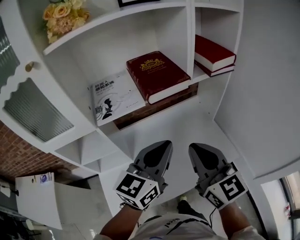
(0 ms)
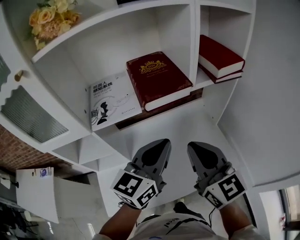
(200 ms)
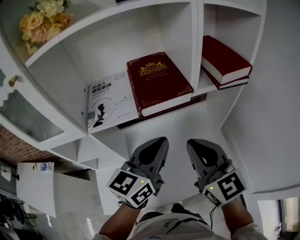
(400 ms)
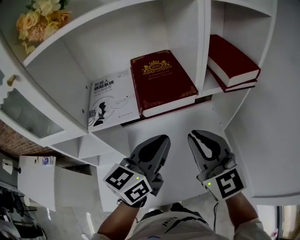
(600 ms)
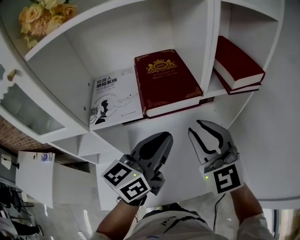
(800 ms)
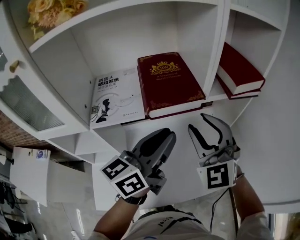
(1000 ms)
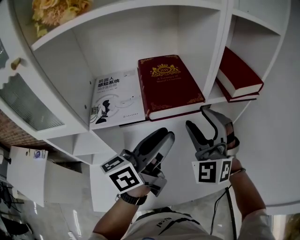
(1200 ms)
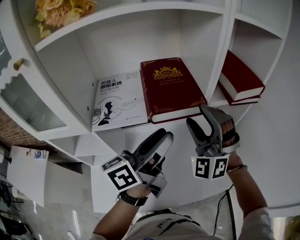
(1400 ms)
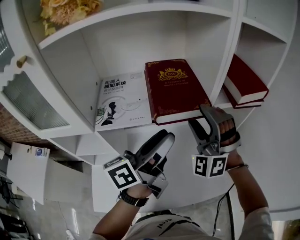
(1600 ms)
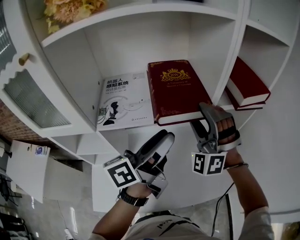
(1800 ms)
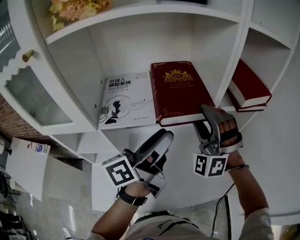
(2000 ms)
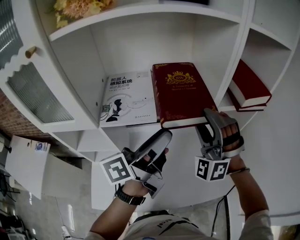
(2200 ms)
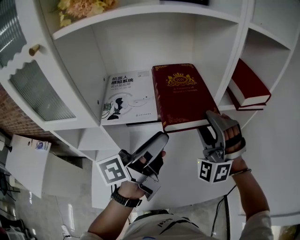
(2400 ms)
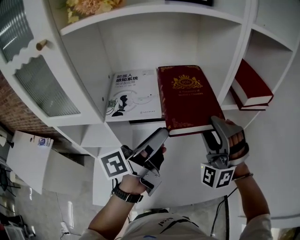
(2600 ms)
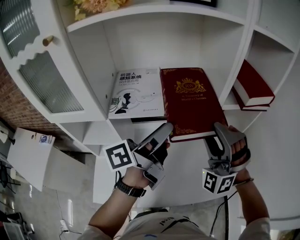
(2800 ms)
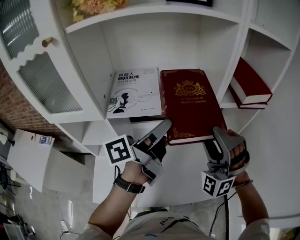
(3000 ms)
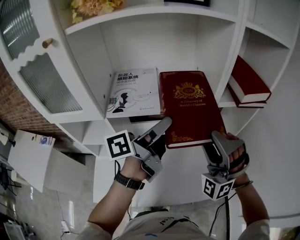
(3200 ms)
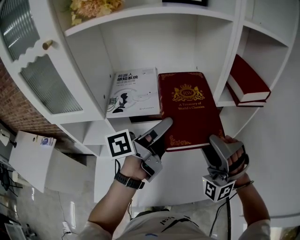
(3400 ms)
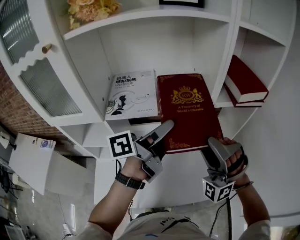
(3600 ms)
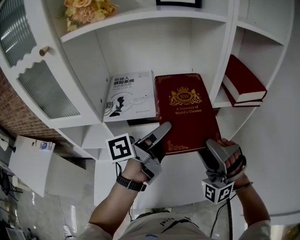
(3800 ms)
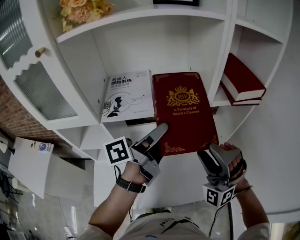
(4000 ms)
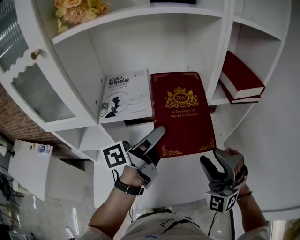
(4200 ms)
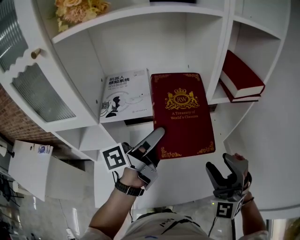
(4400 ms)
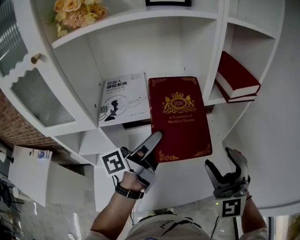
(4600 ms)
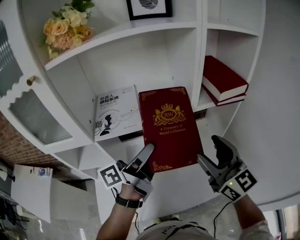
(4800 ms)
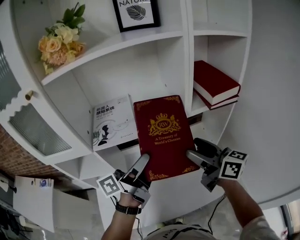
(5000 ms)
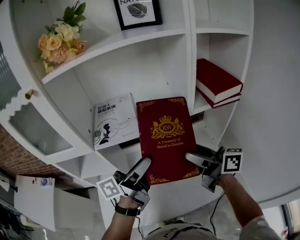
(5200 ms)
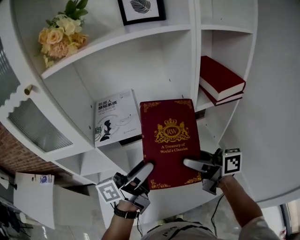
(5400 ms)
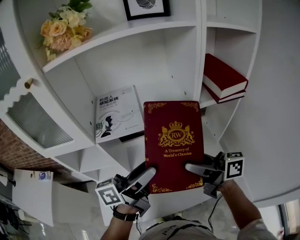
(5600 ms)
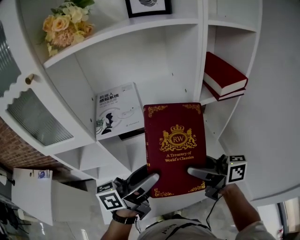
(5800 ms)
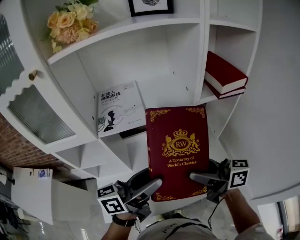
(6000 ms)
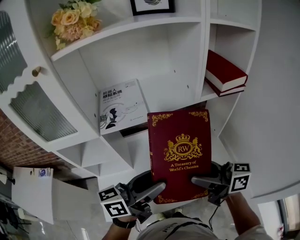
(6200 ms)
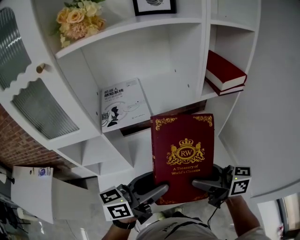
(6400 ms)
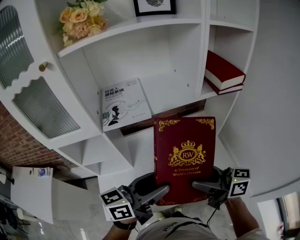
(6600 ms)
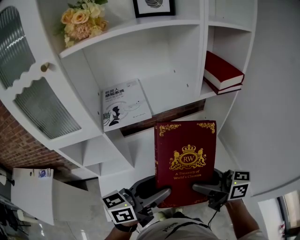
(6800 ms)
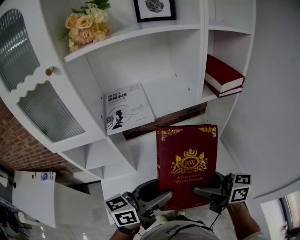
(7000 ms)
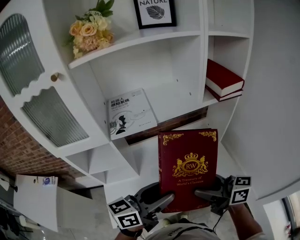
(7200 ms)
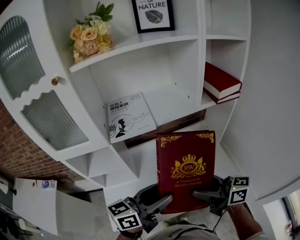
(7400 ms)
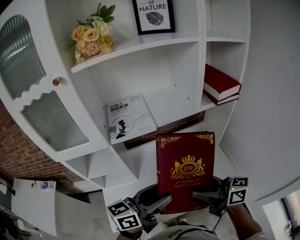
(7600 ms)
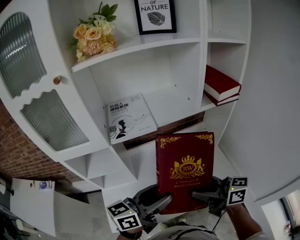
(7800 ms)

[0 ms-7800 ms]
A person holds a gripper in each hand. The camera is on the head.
0 ms to 1600 ms: The left gripper travels forward by some 10 cm, turns by approximately 40 degrees, and opens up; the right gripper moves forward, approximately 20 cm, twists roughly 80 degrees counterclockwise, seen from behind, and opens.
1600 ms to 3200 ms: The right gripper is displaced backward by about 10 cm.
3200 ms to 4600 ms: The right gripper shifts approximately 10 cm backward and to the right, and twists approximately 40 degrees clockwise, seen from behind.
4600 ms to 6200 ms: The right gripper moves to the left and downward, about 10 cm, goes forward and returns, roughly 10 cm each way, and rolls clockwise, seen from behind, by about 80 degrees. The left gripper goes about 15 cm backward, and changes its angle by about 30 degrees.
6200 ms to 7800 ms: The right gripper changes place by about 5 cm.

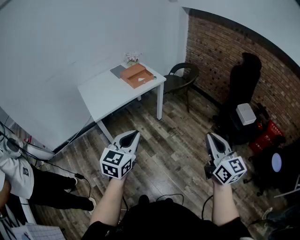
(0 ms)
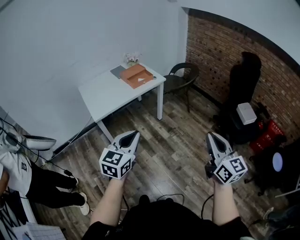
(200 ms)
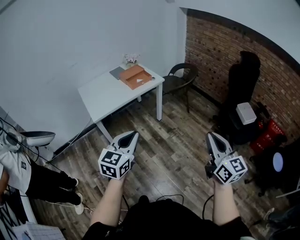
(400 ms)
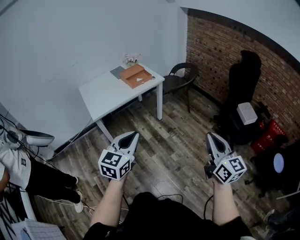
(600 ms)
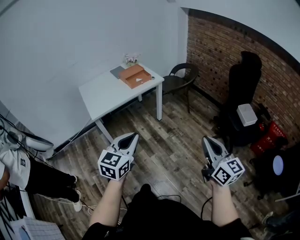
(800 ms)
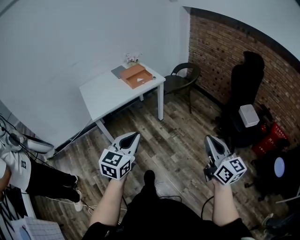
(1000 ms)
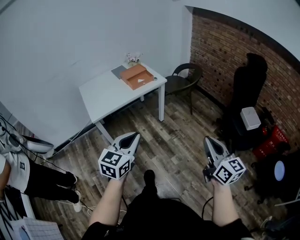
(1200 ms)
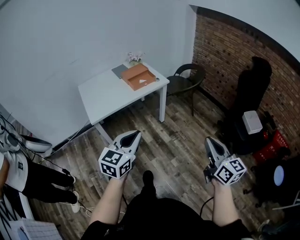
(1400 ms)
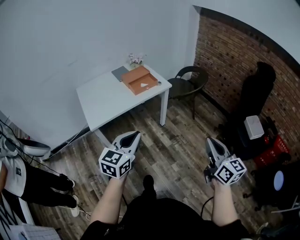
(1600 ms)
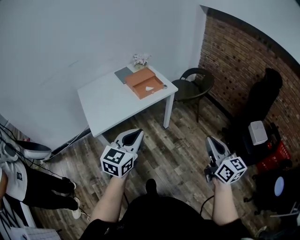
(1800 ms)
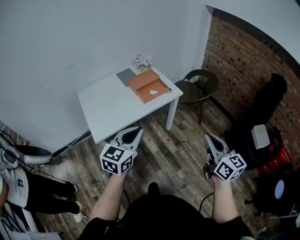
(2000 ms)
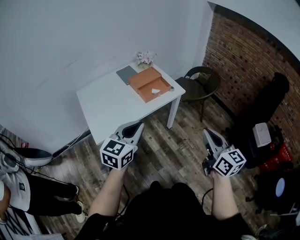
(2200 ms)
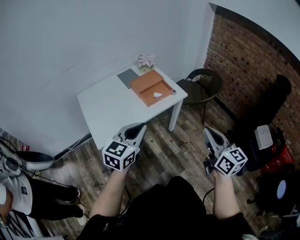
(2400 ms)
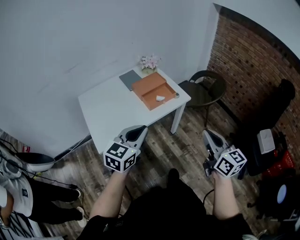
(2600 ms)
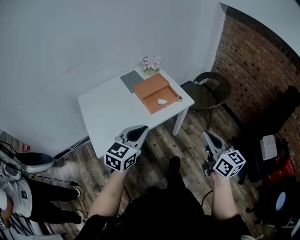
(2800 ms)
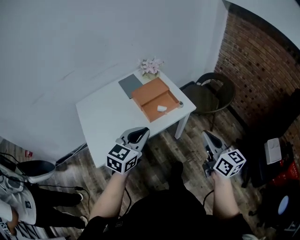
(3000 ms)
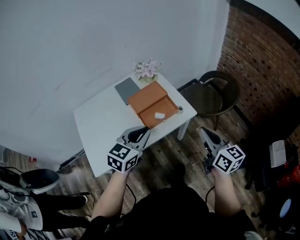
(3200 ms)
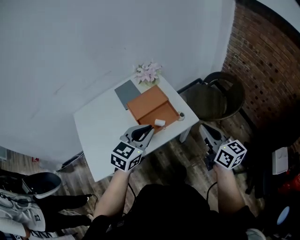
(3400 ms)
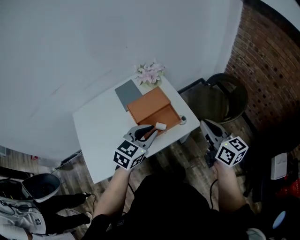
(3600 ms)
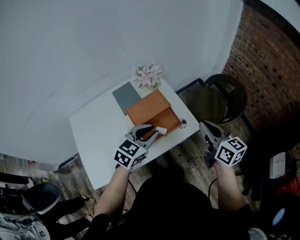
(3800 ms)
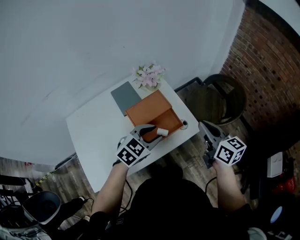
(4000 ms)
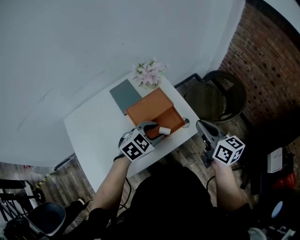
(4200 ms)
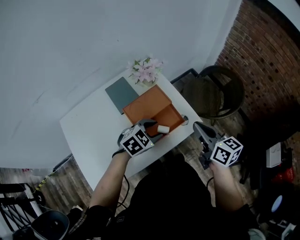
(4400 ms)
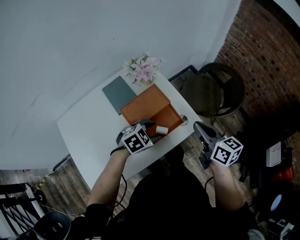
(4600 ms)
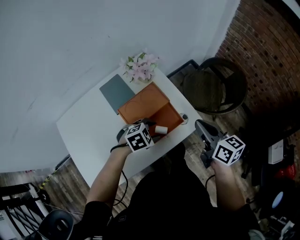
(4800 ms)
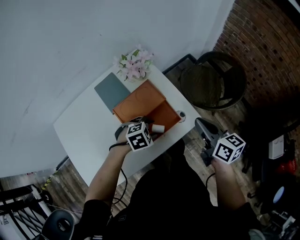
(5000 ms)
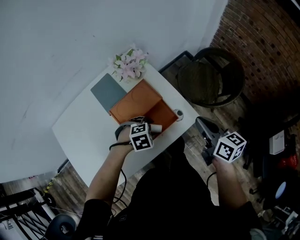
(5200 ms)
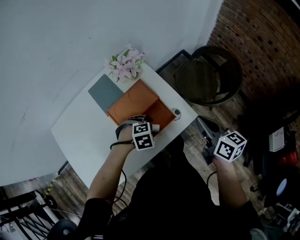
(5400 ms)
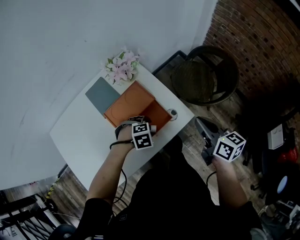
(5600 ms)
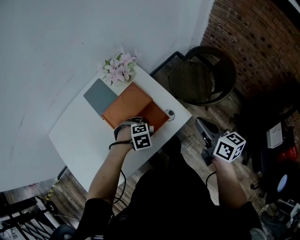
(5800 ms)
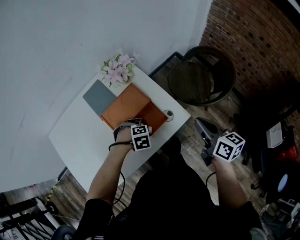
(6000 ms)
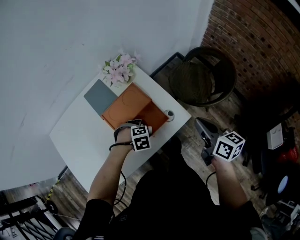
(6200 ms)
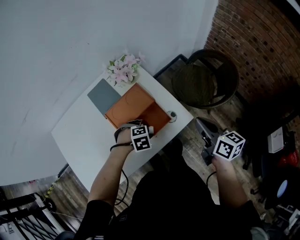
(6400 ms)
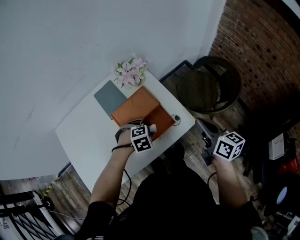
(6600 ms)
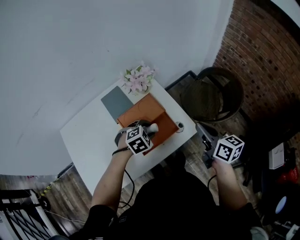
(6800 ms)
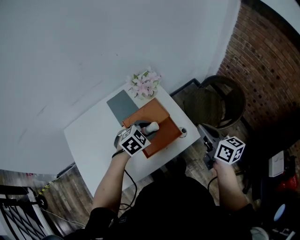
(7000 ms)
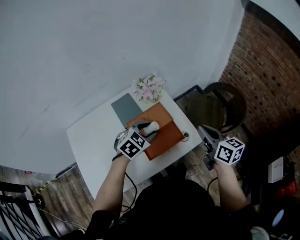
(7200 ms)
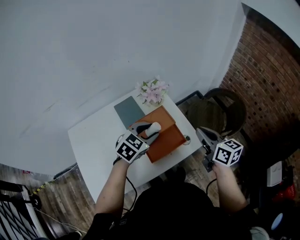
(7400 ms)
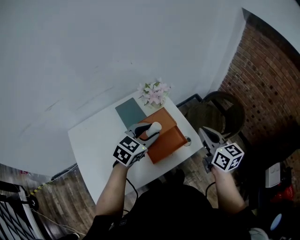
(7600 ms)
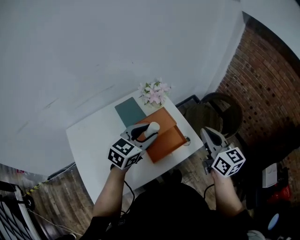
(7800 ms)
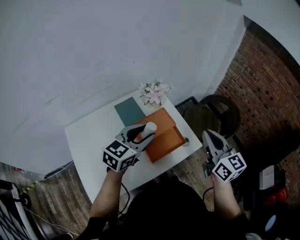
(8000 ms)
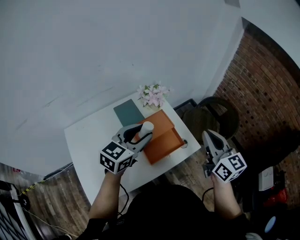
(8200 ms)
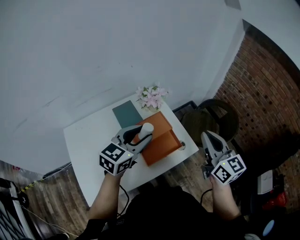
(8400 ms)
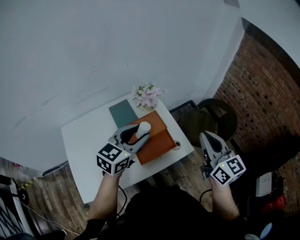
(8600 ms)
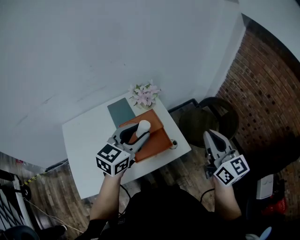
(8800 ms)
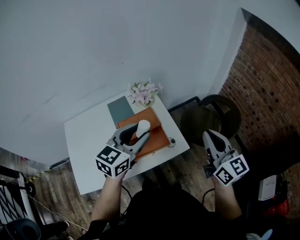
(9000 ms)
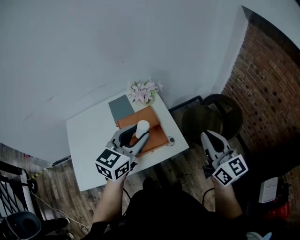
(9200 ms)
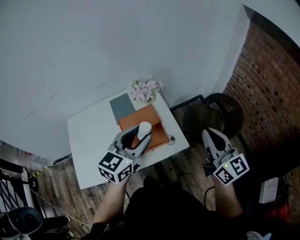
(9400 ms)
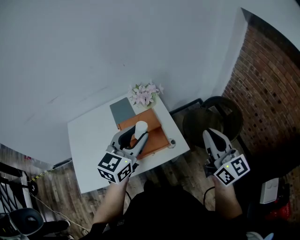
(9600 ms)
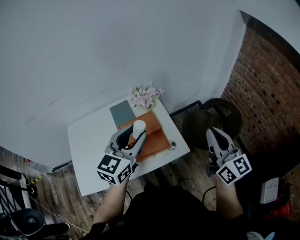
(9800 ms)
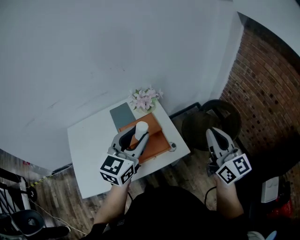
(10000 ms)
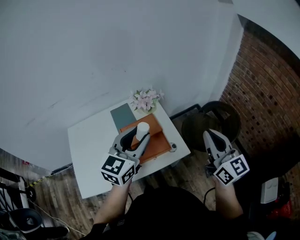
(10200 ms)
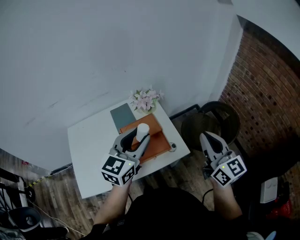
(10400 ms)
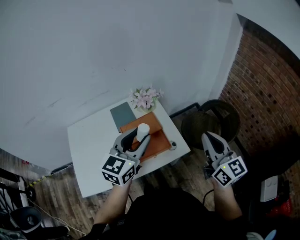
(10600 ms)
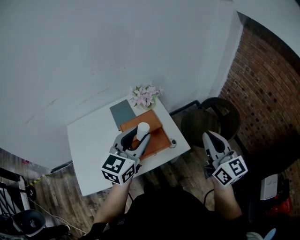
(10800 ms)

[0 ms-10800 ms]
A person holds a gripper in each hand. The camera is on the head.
0 ms to 1600 ms: Both grippers move forward, some 15 cm.
1600 ms to 3000 ms: Both grippers move forward, approximately 35 cm.
3000 ms to 4600 ms: The left gripper is displaced forward and downward by roughly 35 cm, points its fingers some 30 degrees further downward, and opens up, while the right gripper shifts roughly 30 cm forward.
4600 ms to 6200 ms: The right gripper changes place by some 10 cm, while the left gripper goes some 10 cm downward, and changes its angle by approximately 40 degrees.
6200 ms to 7800 ms: The right gripper heads upward, covering some 15 cm, and rotates roughly 30 degrees, while the left gripper heads upward, covering about 30 cm, and angles its fingers upward, by approximately 60 degrees.
7800 ms to 9200 ms: The right gripper shifts about 15 cm to the right, while the left gripper is displaced to the right and upward by roughly 15 cm.
9200 ms to 10800 ms: The grippers move only a little.

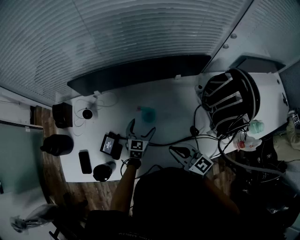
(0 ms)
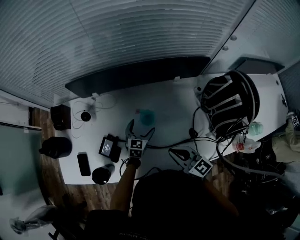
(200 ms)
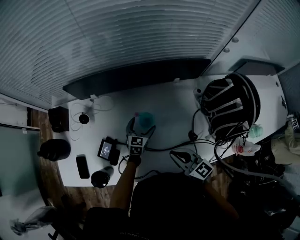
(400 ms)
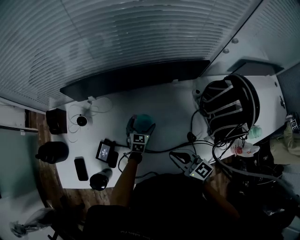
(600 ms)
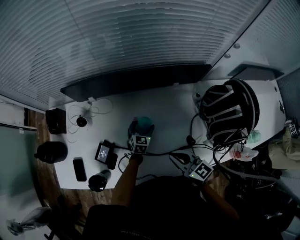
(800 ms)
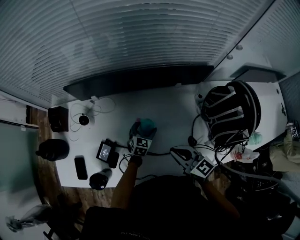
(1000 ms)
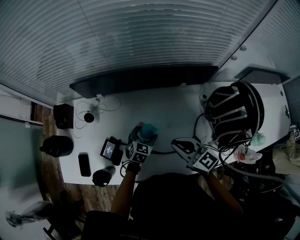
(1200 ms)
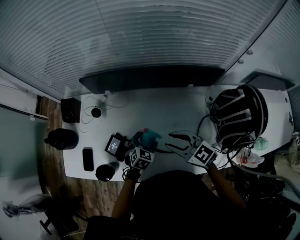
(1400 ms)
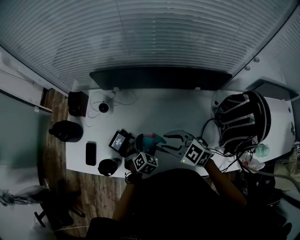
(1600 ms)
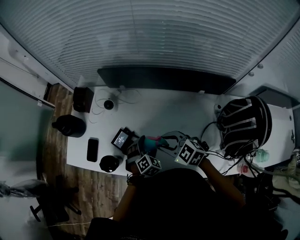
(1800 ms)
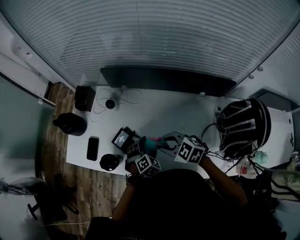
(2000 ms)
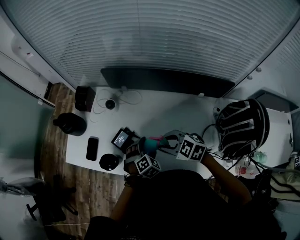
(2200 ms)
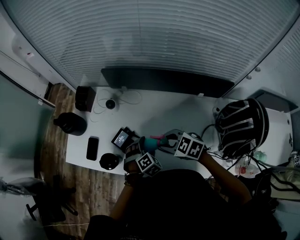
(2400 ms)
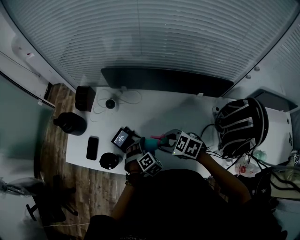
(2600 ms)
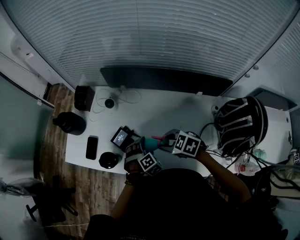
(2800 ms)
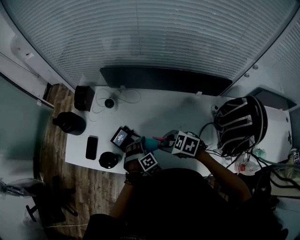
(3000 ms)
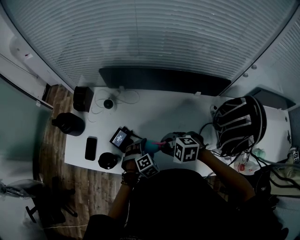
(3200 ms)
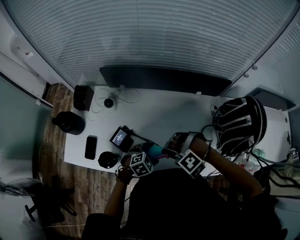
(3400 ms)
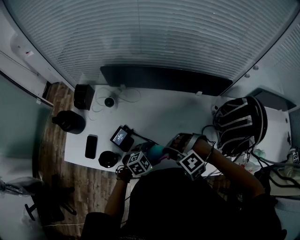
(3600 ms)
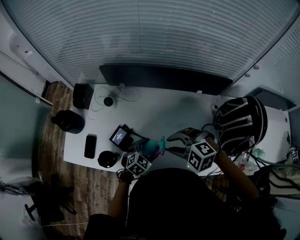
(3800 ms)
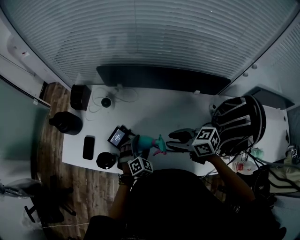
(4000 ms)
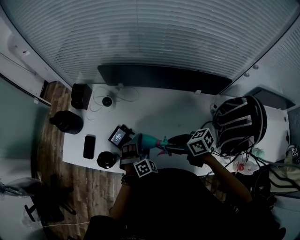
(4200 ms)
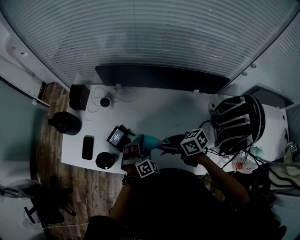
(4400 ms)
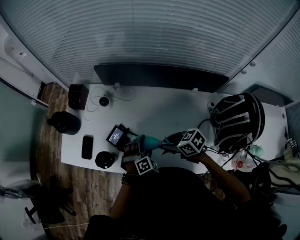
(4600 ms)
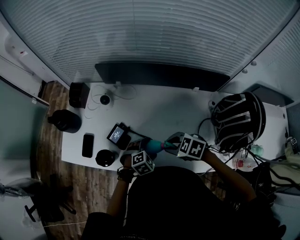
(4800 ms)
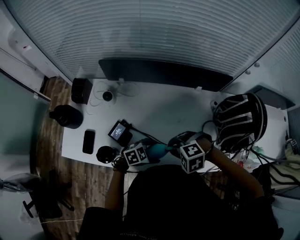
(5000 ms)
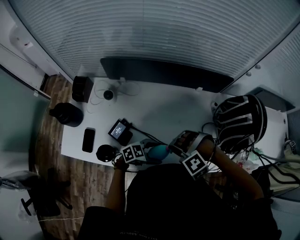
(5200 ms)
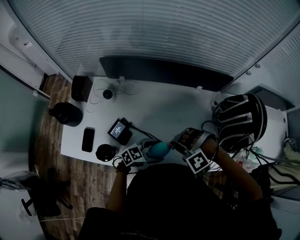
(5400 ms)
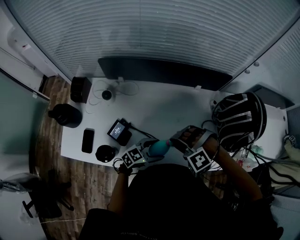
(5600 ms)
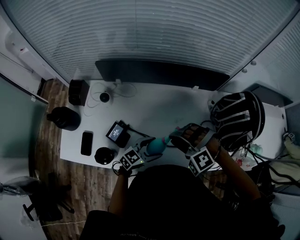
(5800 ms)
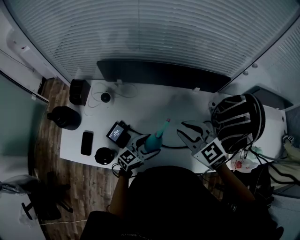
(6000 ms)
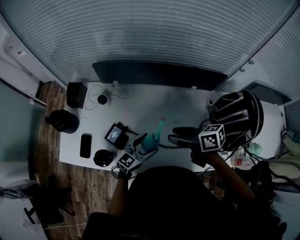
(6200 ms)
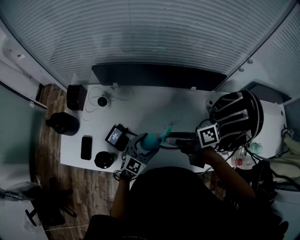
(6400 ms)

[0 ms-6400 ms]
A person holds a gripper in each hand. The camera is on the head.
0 ms to 1600 ms: The right gripper moves forward and to the left, about 10 cm, changes its angle by about 40 degrees, and opens. The left gripper is displaced to the left and backward by approximately 10 cm, and turns by some 30 degrees.
1600 ms to 3200 ms: The left gripper shifts by about 5 cm; the right gripper ends up some 5 cm from where it was, and swivels about 30 degrees.
3200 ms to 4800 ms: The right gripper travels upward and back again, approximately 5 cm each way, and turns by approximately 20 degrees.
4800 ms to 6400 ms: The two grippers go about 10 cm upward. The right gripper points its fingers about 40 degrees further upward, and opens its fingers; the left gripper tips its fingers upward by some 40 degrees.
